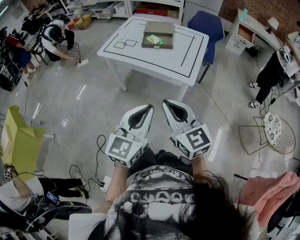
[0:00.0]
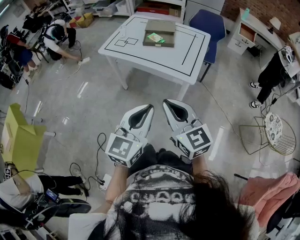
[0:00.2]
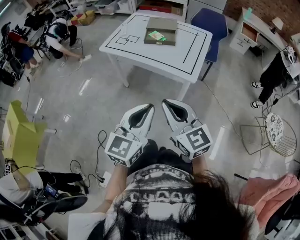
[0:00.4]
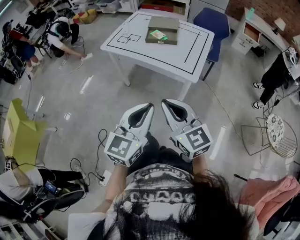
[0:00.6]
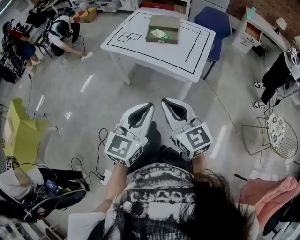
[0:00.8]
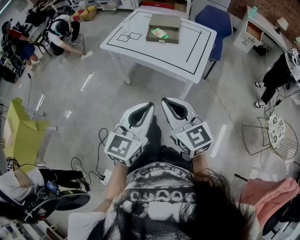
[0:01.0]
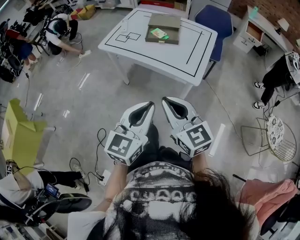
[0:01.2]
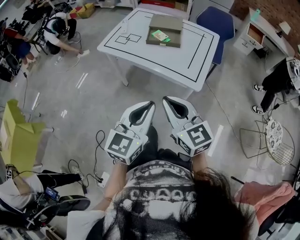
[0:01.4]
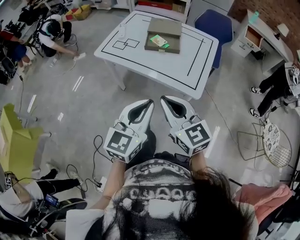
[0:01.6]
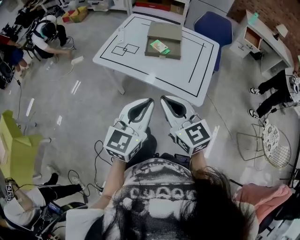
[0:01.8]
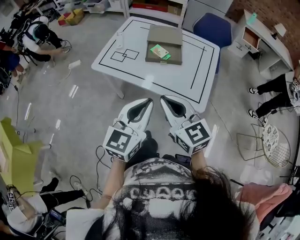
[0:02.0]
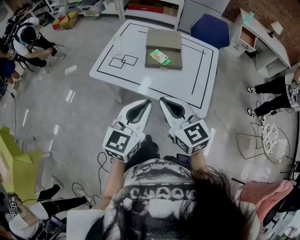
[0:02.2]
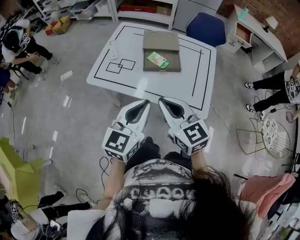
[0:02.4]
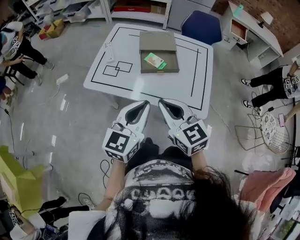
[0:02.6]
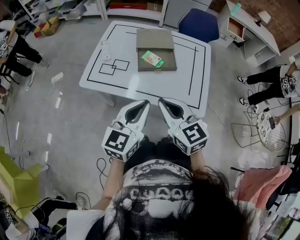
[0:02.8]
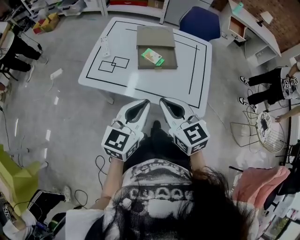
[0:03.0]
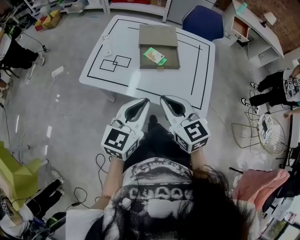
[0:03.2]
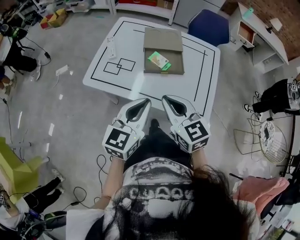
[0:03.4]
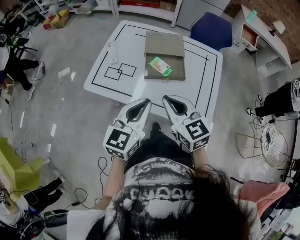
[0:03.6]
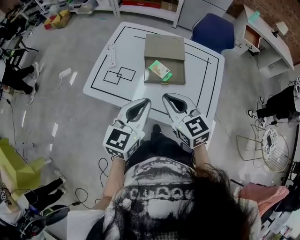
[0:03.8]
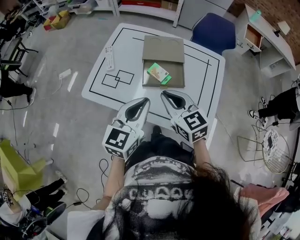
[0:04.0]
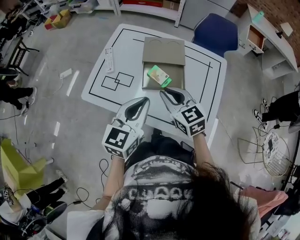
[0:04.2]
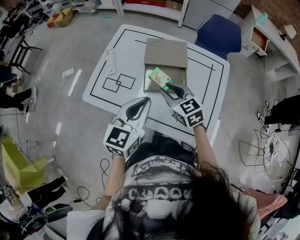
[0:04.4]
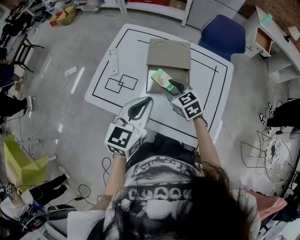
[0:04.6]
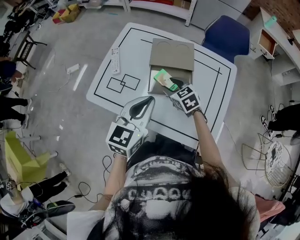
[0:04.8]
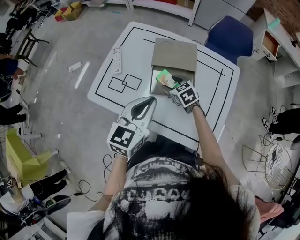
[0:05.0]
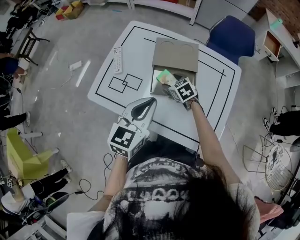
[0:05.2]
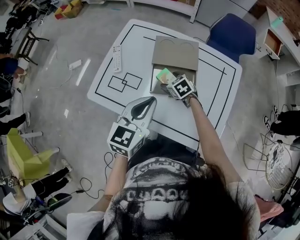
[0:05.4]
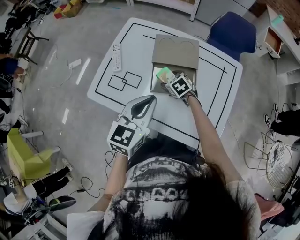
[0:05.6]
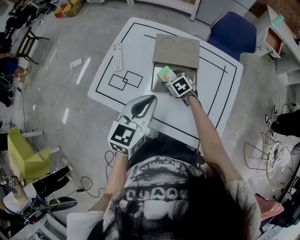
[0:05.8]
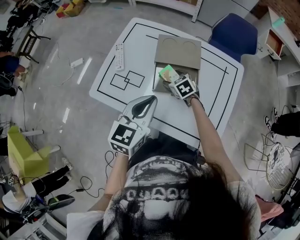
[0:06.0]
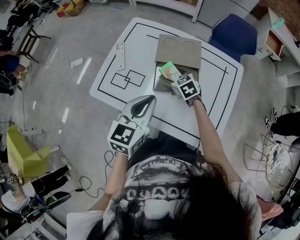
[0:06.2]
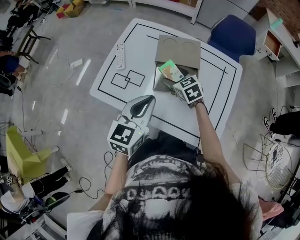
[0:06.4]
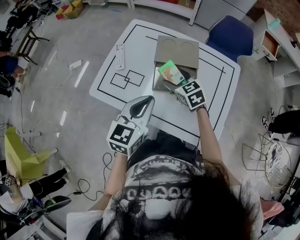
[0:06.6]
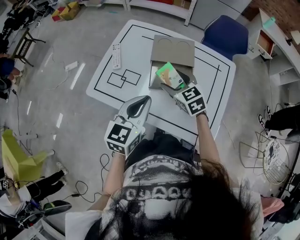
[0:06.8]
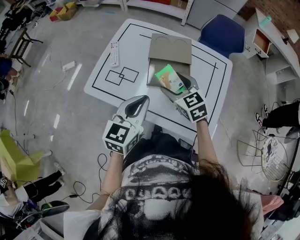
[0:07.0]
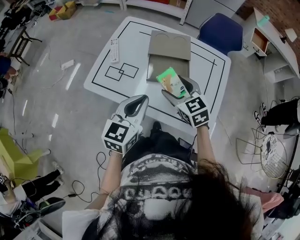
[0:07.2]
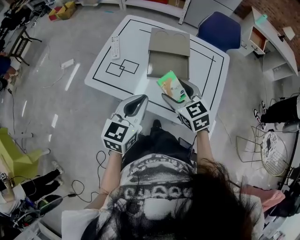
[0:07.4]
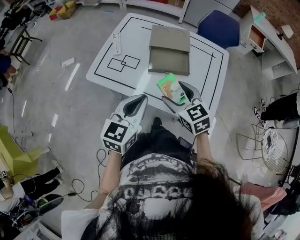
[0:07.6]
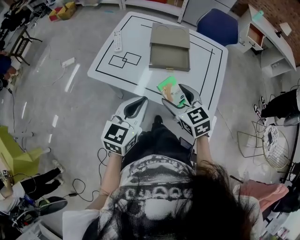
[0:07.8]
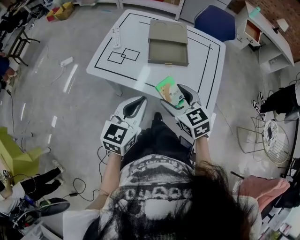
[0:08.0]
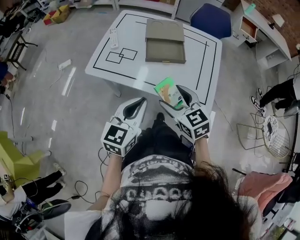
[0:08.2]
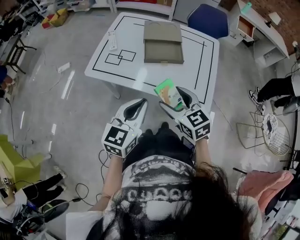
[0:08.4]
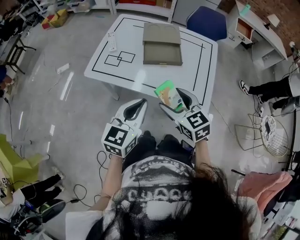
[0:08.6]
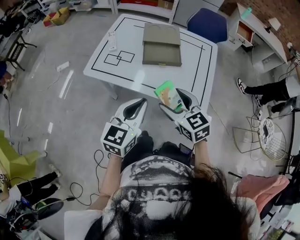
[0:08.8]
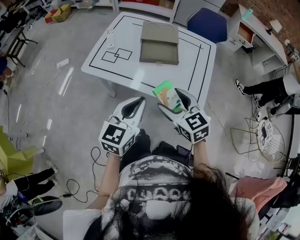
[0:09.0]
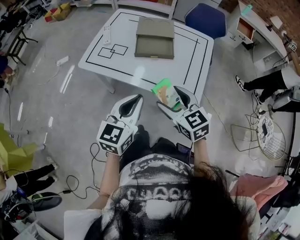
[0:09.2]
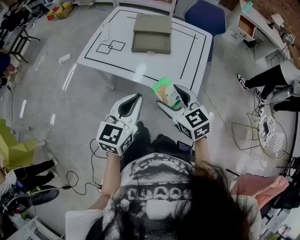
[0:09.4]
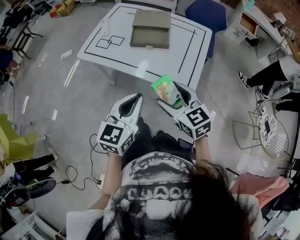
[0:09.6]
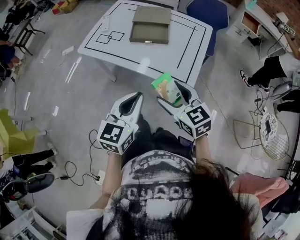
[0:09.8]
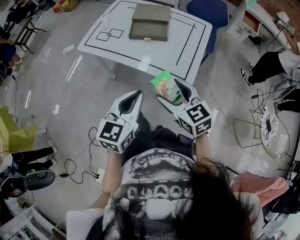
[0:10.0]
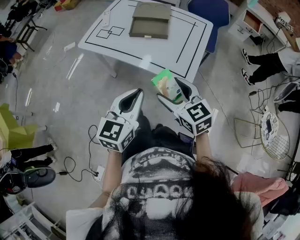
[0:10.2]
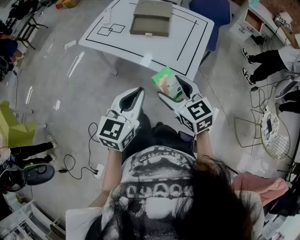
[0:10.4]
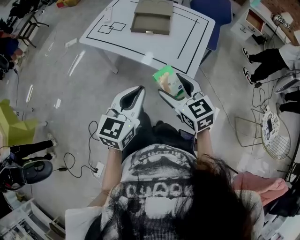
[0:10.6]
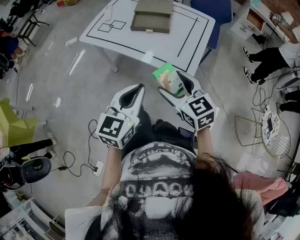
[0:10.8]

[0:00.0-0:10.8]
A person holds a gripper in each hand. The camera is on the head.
0:00.0 to 0:01.6: The two grippers go approximately 15 cm forward.
0:01.6 to 0:03.0: The left gripper travels forward and to the left by roughly 25 cm. The right gripper moves forward, some 20 cm.
0:03.0 to 0:04.6: The left gripper heads forward, covering about 20 cm. Meanwhile the right gripper moves forward and downward, approximately 30 cm, turns by some 20 degrees, and opens up.
0:04.6 to 0:06.2: The right gripper goes about 10 cm downward and forward, and opens.
0:06.2 to 0:07.8: The left gripper heads backward, covering some 20 cm. Meanwhile the right gripper travels backward and upward by approximately 30 cm.
0:07.8 to 0:09.2: The two grippers go some 10 cm backward and to the right.
0:09.2 to 0:10.8: The grippers both shift backward and to the right by approximately 15 cm.

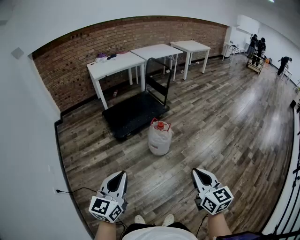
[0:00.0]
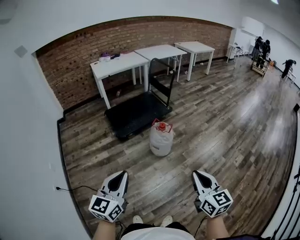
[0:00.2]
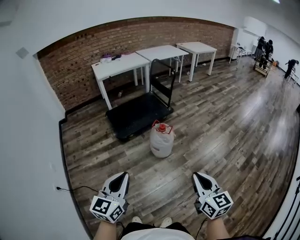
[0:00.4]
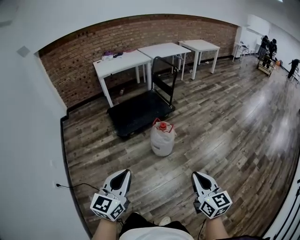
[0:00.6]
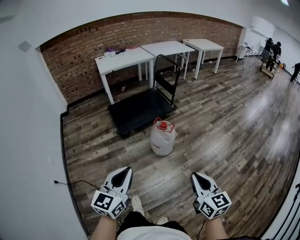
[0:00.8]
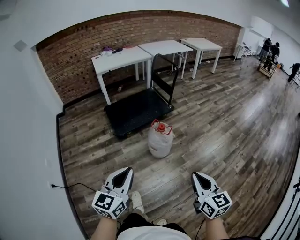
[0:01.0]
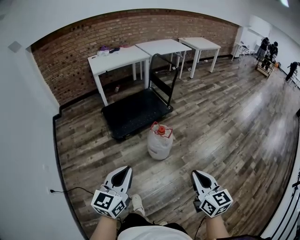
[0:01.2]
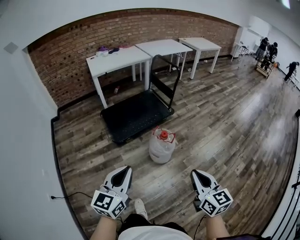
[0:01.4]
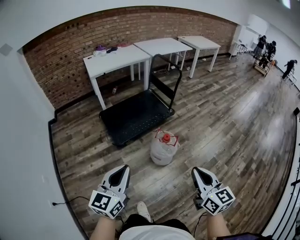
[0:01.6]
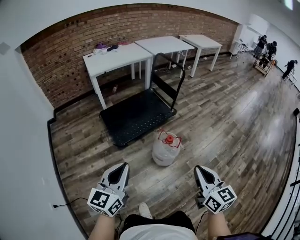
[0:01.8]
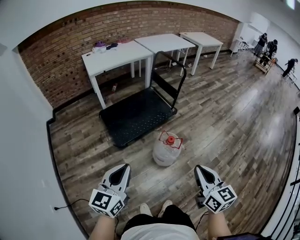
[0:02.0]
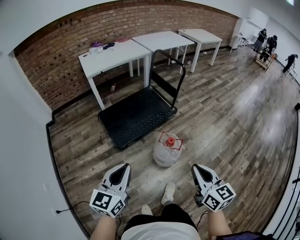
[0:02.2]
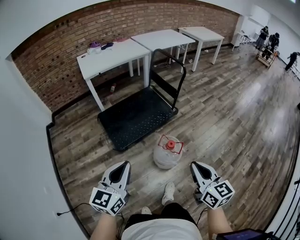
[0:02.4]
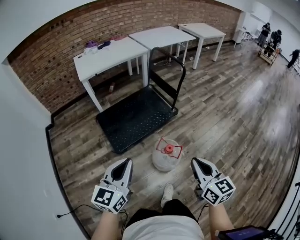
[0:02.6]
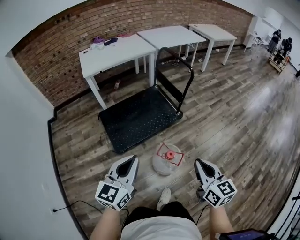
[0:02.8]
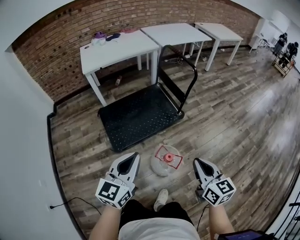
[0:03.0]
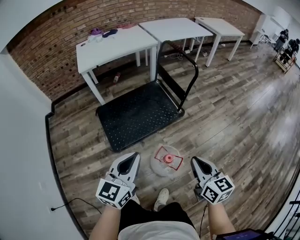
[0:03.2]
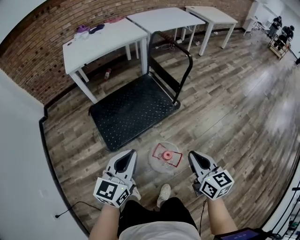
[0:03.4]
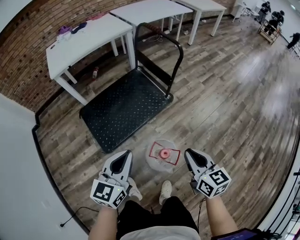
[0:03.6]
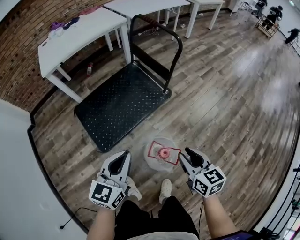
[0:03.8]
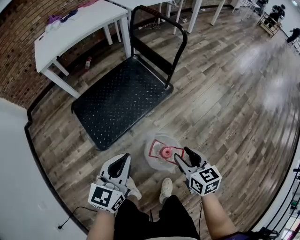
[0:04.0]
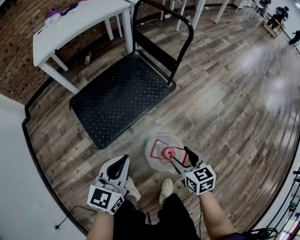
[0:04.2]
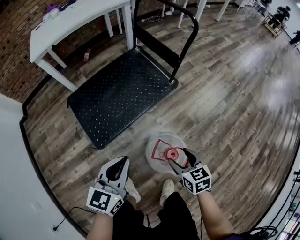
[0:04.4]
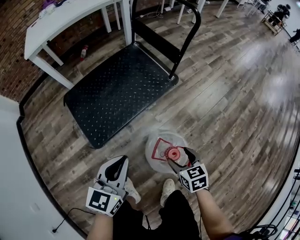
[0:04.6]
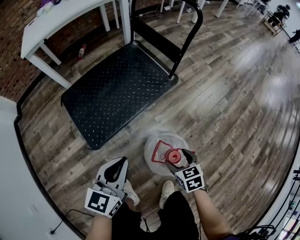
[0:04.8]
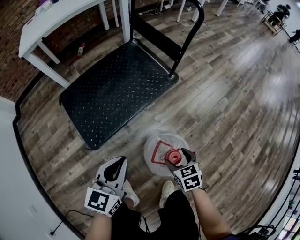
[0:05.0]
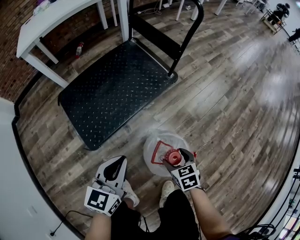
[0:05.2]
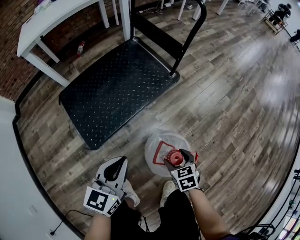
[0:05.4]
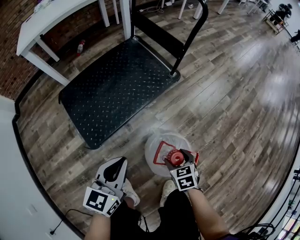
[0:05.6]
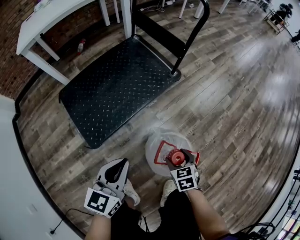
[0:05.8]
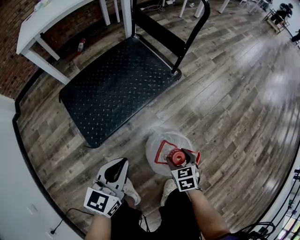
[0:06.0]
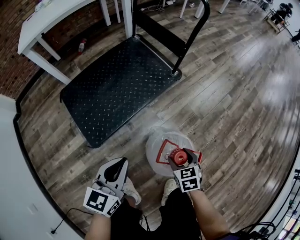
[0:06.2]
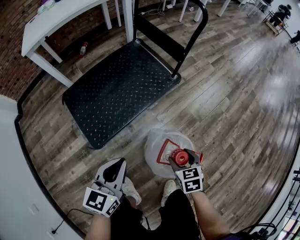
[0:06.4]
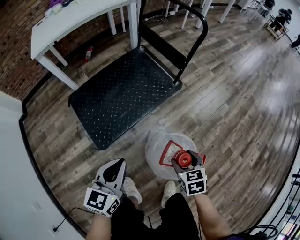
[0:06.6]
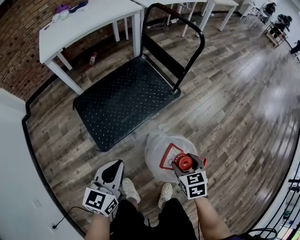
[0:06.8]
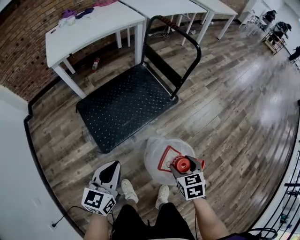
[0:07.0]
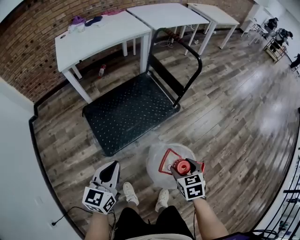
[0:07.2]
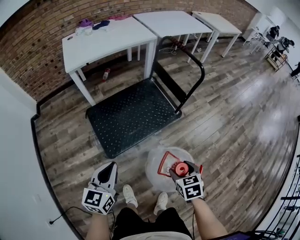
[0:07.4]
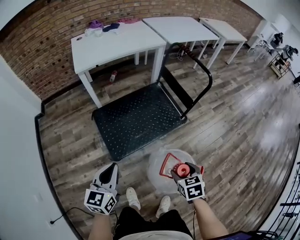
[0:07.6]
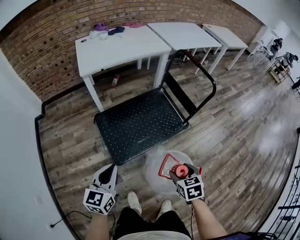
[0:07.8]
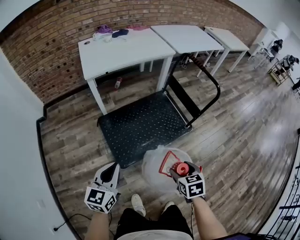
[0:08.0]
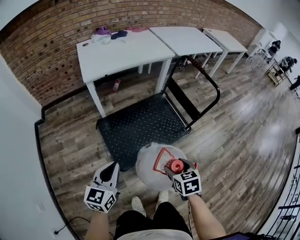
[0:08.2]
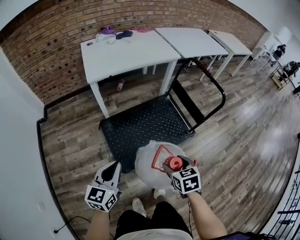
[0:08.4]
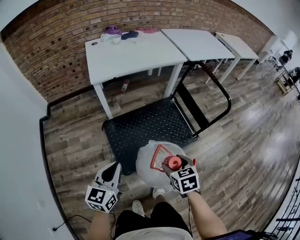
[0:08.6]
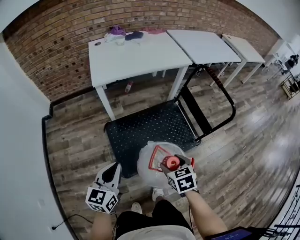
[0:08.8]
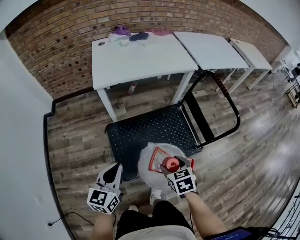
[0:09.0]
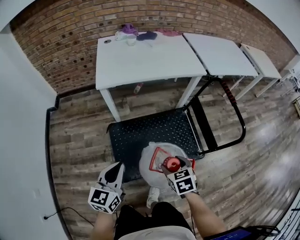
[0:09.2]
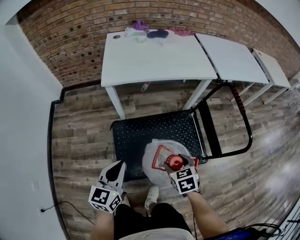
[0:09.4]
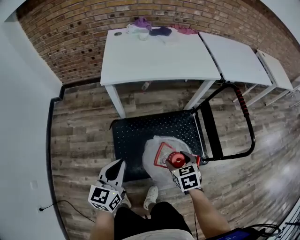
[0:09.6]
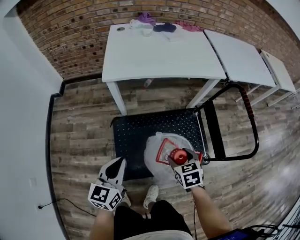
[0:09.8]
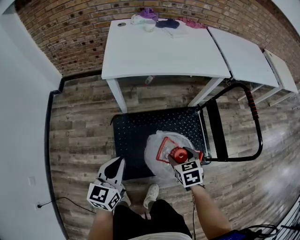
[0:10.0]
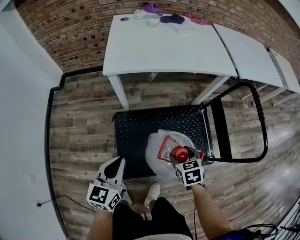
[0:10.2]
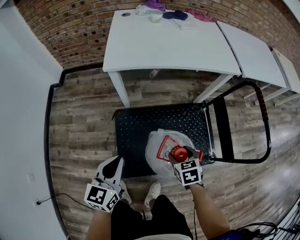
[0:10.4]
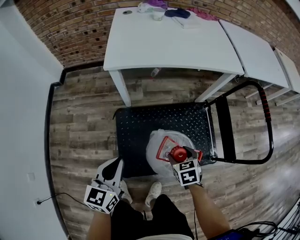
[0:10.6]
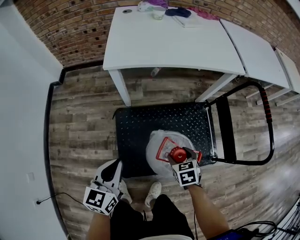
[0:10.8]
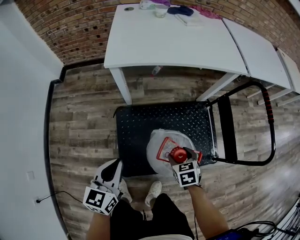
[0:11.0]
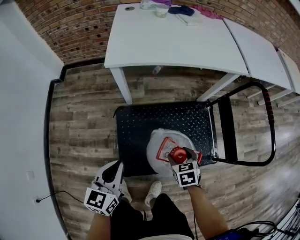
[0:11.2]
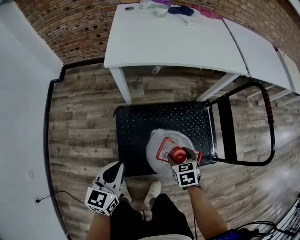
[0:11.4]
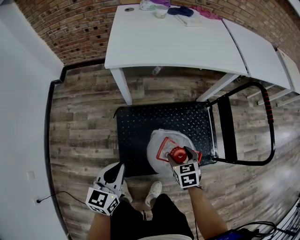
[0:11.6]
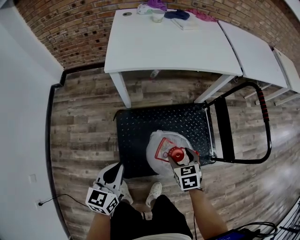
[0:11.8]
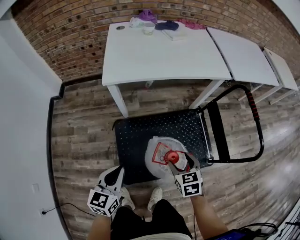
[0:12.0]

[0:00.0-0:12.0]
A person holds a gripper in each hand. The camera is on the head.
0:00.0 to 0:01.6: Both grippers move forward, some 20 cm.
0:01.6 to 0:03.0: The grippers both shift forward by roughly 30 cm.
0:03.0 to 0:04.4: The left gripper is displaced downward and forward by approximately 25 cm. The right gripper travels downward by some 35 cm, turns by about 30 degrees, and opens its fingers.
0:04.4 to 0:06.0: The left gripper shifts approximately 10 cm downward. Meanwhile the right gripper shifts some 15 cm downward.
0:06.0 to 0:07.6: The right gripper moves upward, some 30 cm; the left gripper heads upward and to the left, covering some 30 cm, and rotates roughly 20 degrees.
0:07.6 to 0:09.0: The two grippers go some 25 cm forward and to the left.
0:09.0 to 0:10.4: The grippers both shift forward and downward by some 15 cm.
0:10.4 to 0:12.0: The right gripper shifts approximately 5 cm upward.

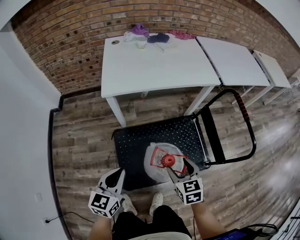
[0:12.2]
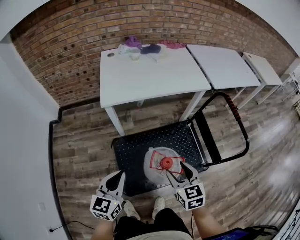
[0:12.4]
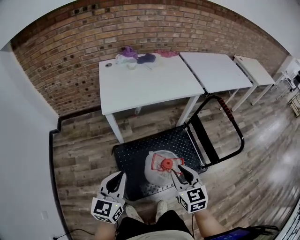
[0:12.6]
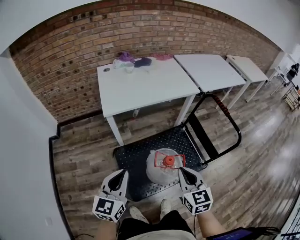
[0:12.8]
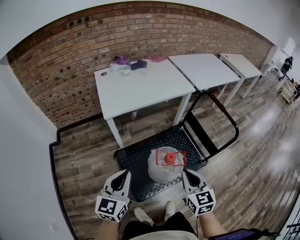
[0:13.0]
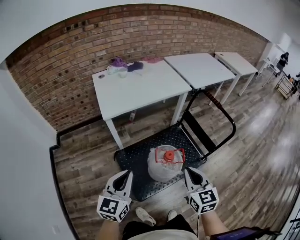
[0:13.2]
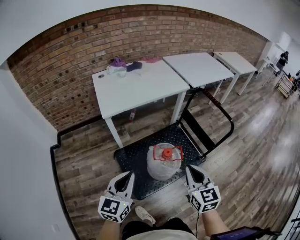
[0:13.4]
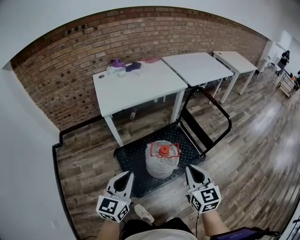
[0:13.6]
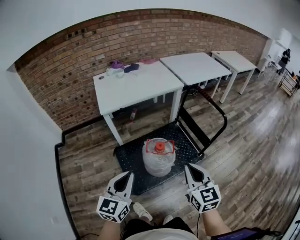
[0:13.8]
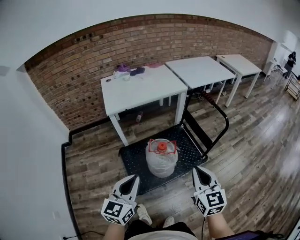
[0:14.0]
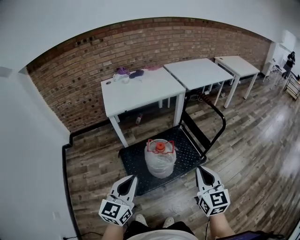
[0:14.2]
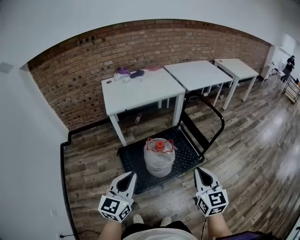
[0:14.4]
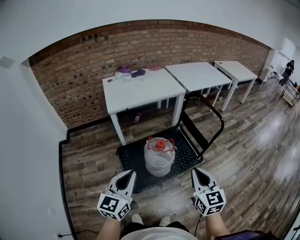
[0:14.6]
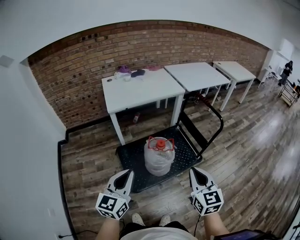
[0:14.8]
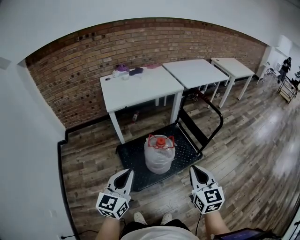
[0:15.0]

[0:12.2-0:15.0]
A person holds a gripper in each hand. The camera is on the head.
0:12.2 to 0:13.6: The grippers both shift upward and backward by some 20 cm. The right gripper turns by roughly 30 degrees, and closes.
0:13.6 to 0:15.0: The right gripper goes approximately 15 cm backward and to the right, while the left gripper goes some 10 cm backward.
